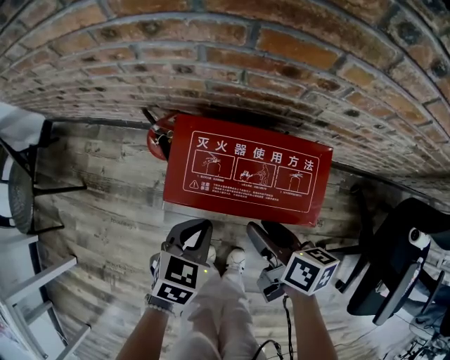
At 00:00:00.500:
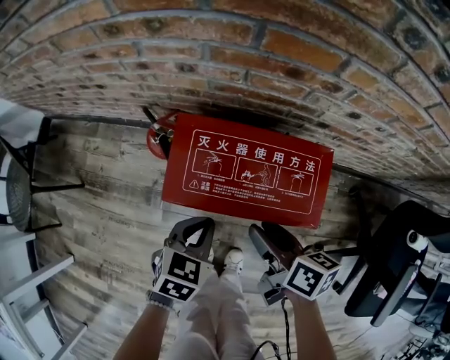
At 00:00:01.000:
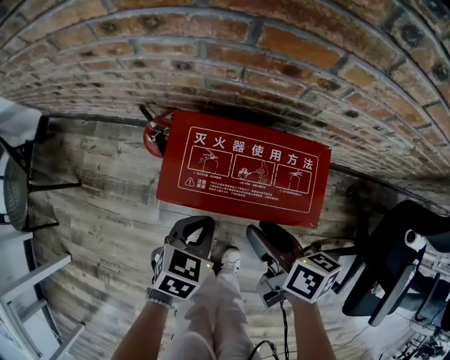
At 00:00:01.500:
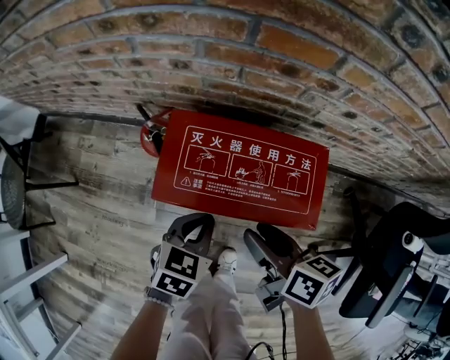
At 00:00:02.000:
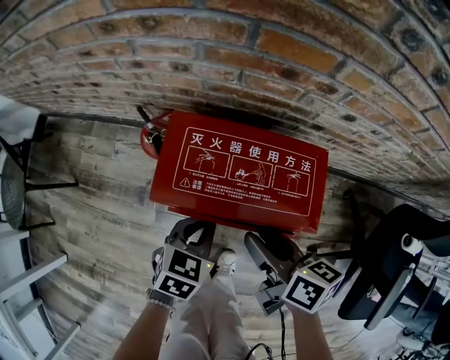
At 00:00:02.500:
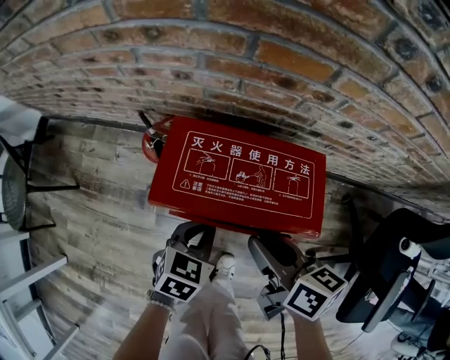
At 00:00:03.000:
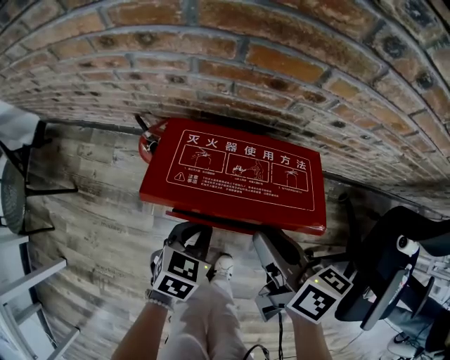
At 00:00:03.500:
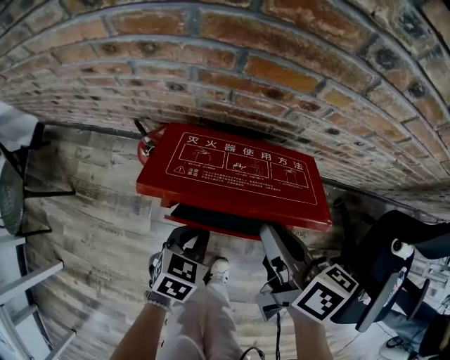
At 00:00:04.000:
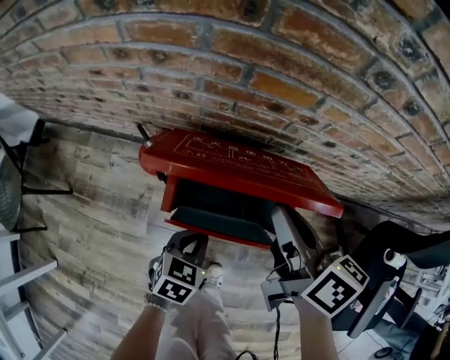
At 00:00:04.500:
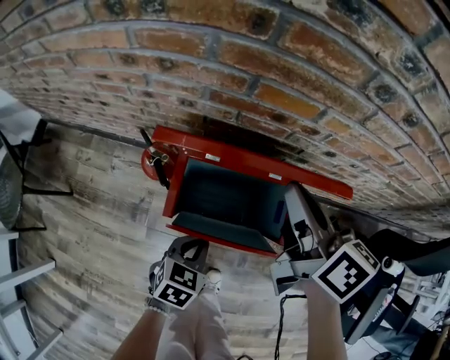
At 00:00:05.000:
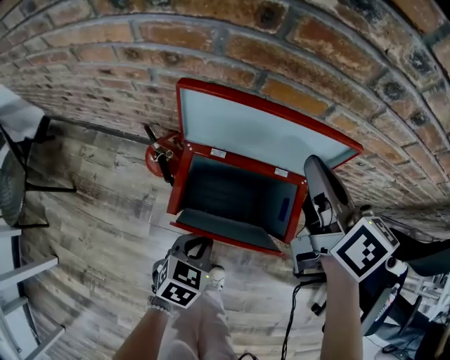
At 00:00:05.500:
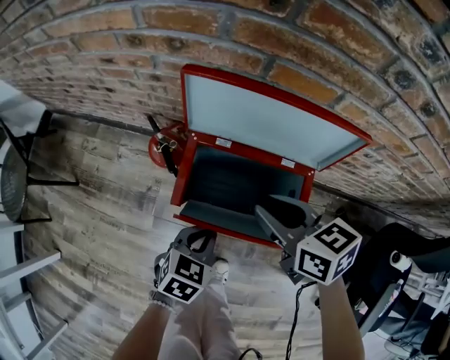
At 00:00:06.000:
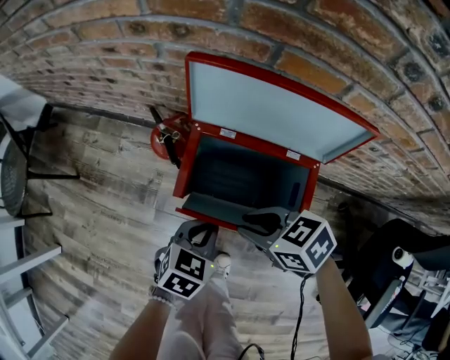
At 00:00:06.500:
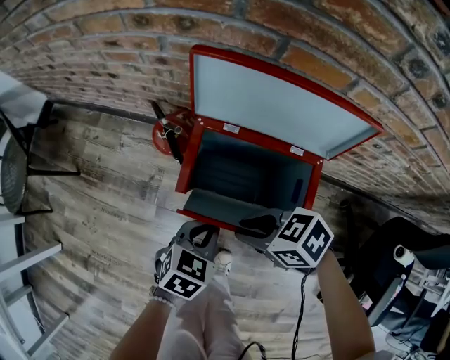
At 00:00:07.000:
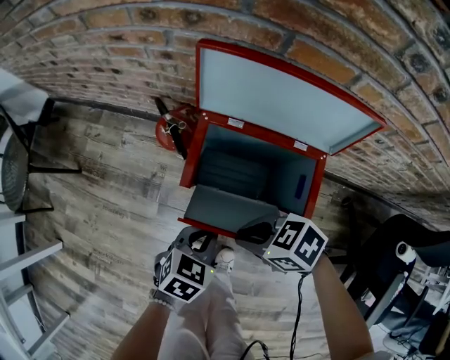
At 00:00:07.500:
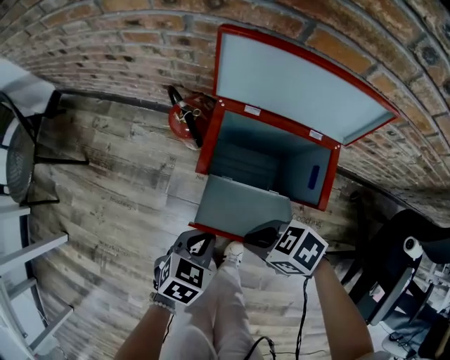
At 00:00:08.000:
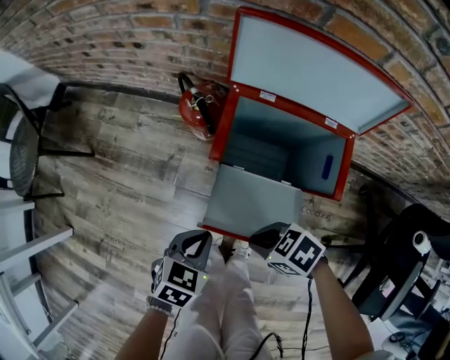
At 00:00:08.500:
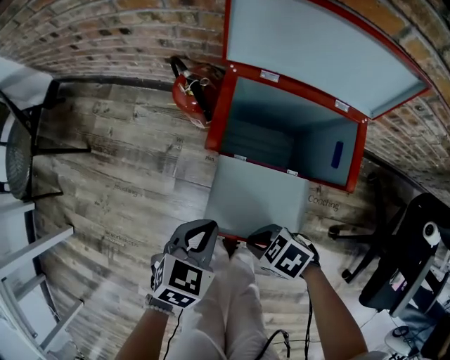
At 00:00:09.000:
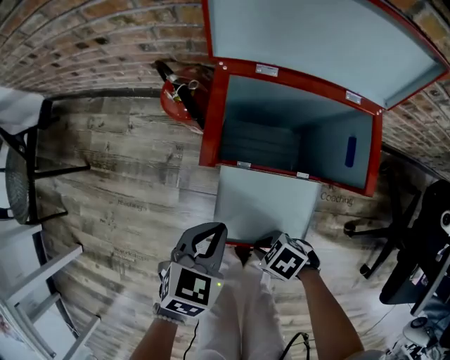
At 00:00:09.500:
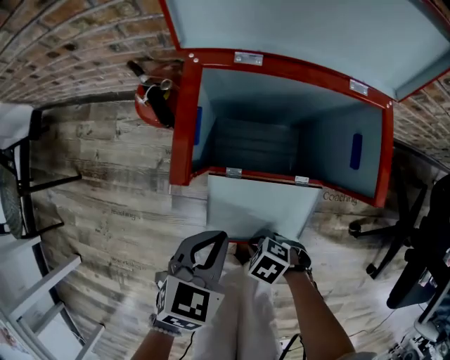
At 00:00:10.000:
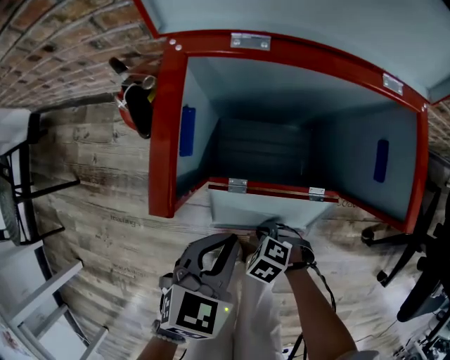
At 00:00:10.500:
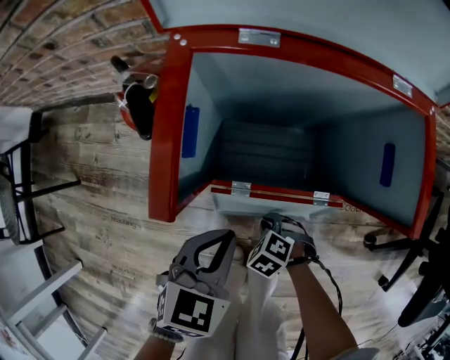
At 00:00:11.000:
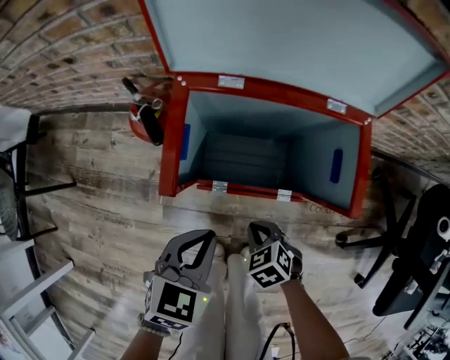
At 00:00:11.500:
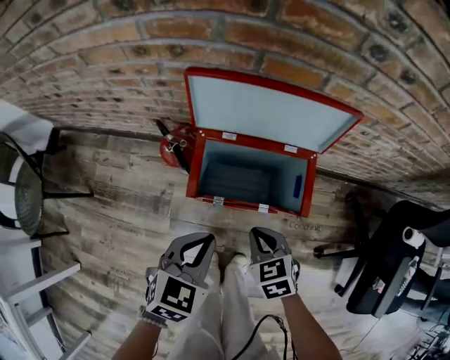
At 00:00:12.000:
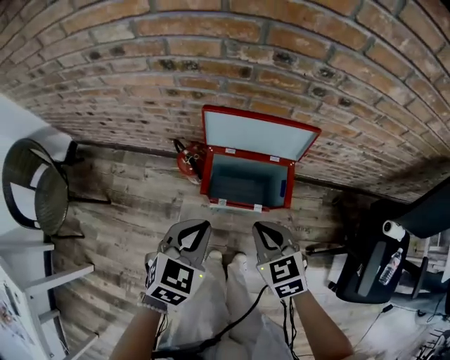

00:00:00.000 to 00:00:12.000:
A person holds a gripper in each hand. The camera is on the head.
00:00:00.000 to 00:00:02.000: The grippers stay close to where they were, moving slightly.
00:00:02.000 to 00:00:04.000: The right gripper travels upward and forward by approximately 15 cm, and closes its fingers.
00:00:04.000 to 00:00:06.000: The right gripper is displaced downward by about 15 cm, rotates roughly 60 degrees, and opens its fingers.
00:00:06.000 to 00:00:08.000: The right gripper changes place by approximately 20 cm. The left gripper ends up approximately 15 cm from where it was.
00:00:08.000 to 00:00:10.000: The right gripper moves downward, some 30 cm, and swivels roughly 30 degrees, while the left gripper shifts some 10 cm downward.
00:00:10.000 to 00:00:12.000: Both grippers move upward, approximately 50 cm. The right gripper points its fingers some 40 degrees further upward.

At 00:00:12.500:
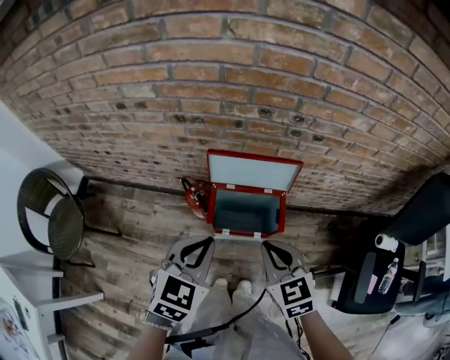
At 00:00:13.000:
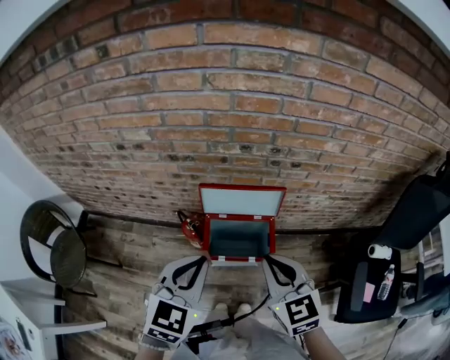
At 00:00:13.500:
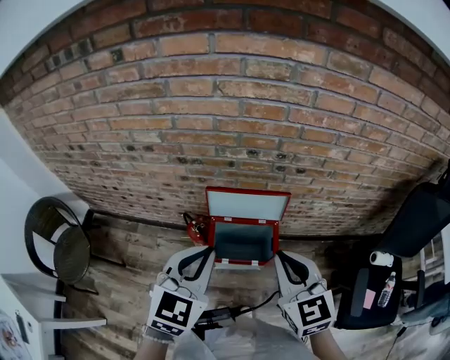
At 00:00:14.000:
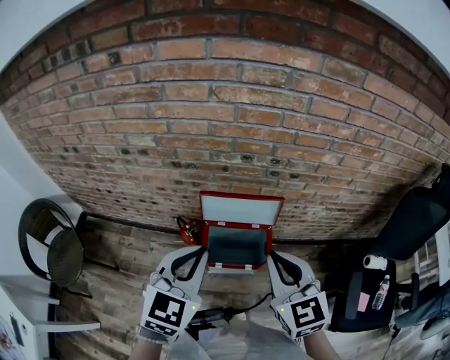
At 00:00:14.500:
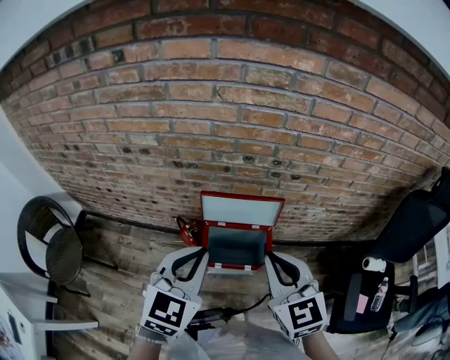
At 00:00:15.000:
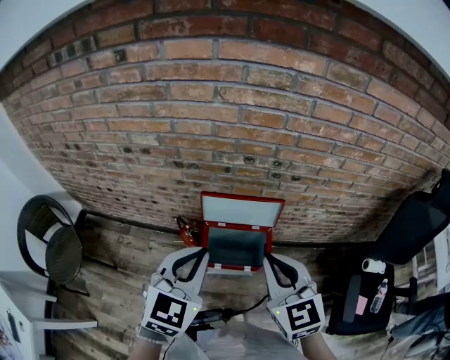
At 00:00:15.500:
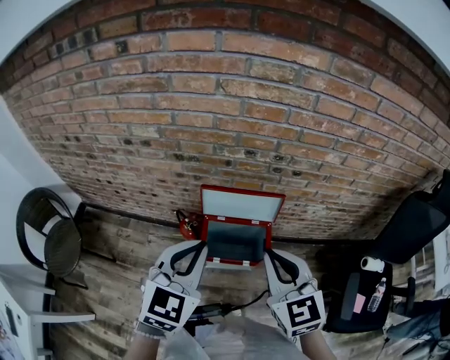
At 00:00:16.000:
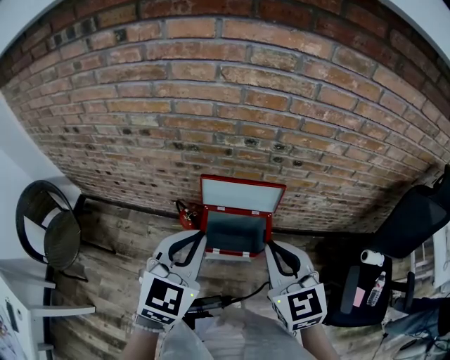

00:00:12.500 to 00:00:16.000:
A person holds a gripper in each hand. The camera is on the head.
00:00:12.500 to 00:00:14.500: The grippers both shift upward by roughly 15 cm.
00:00:14.500 to 00:00:16.000: Both grippers stay about where they are.

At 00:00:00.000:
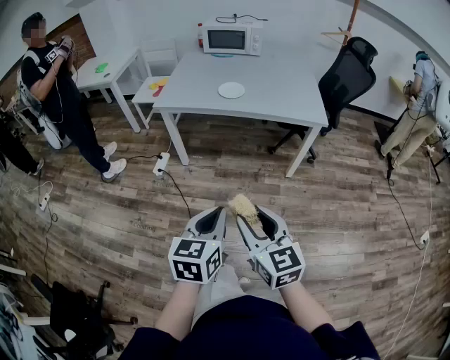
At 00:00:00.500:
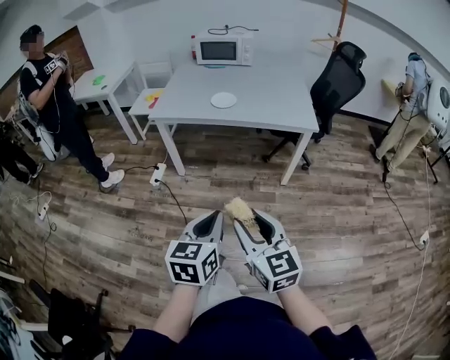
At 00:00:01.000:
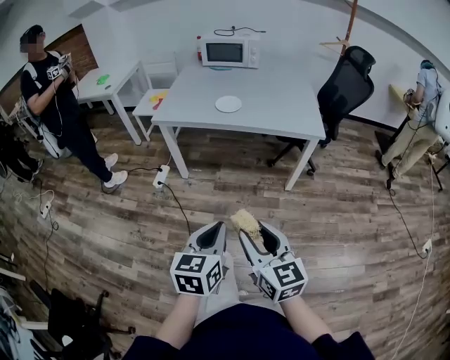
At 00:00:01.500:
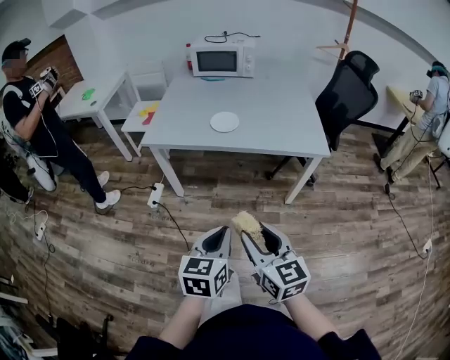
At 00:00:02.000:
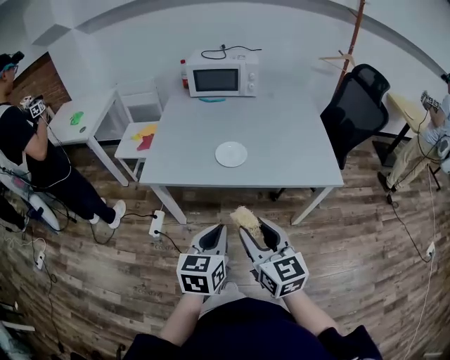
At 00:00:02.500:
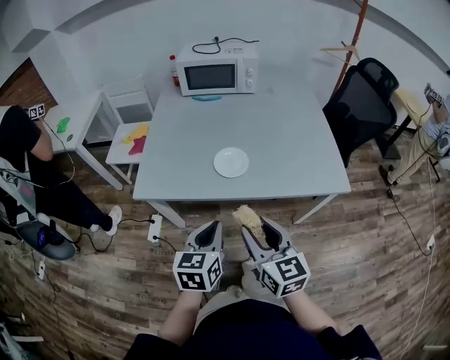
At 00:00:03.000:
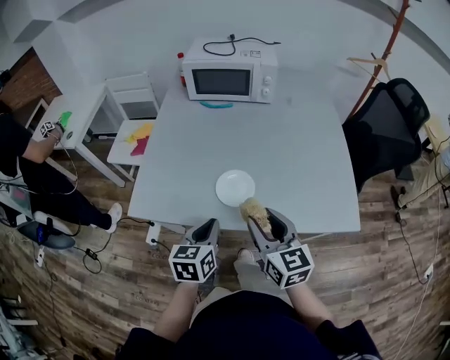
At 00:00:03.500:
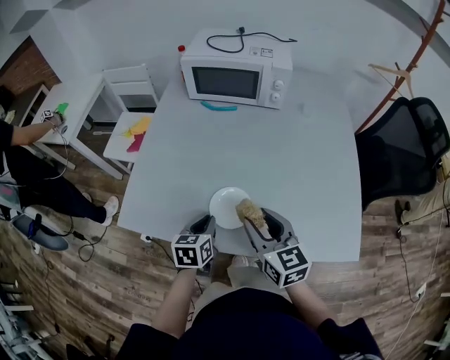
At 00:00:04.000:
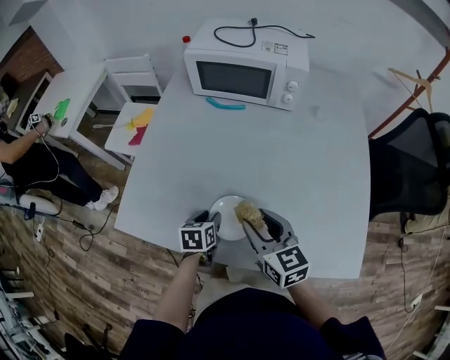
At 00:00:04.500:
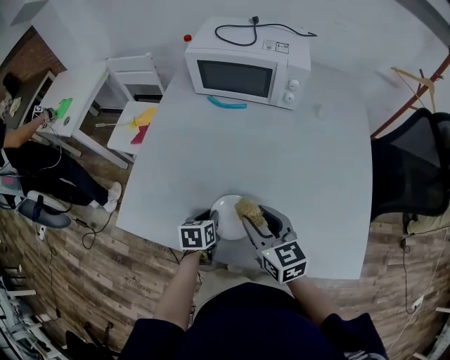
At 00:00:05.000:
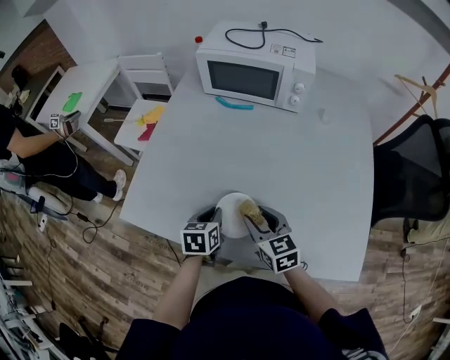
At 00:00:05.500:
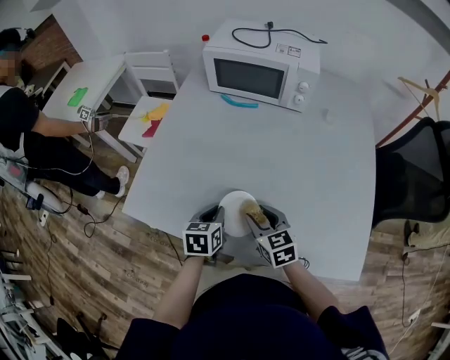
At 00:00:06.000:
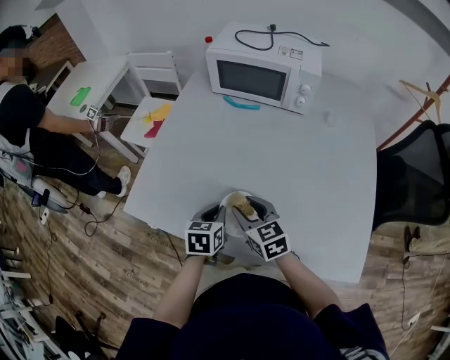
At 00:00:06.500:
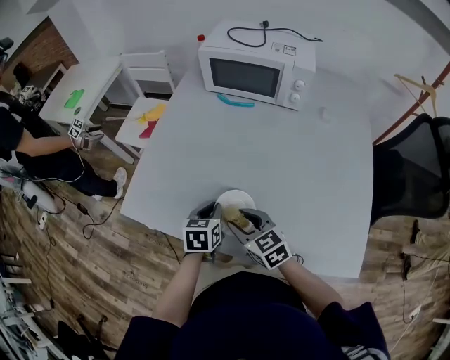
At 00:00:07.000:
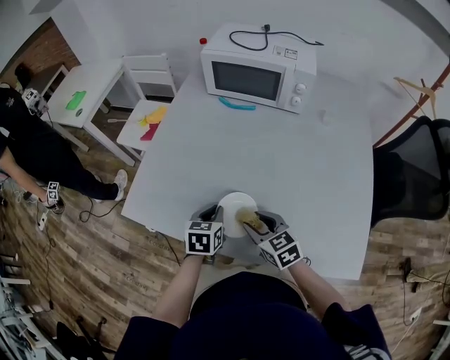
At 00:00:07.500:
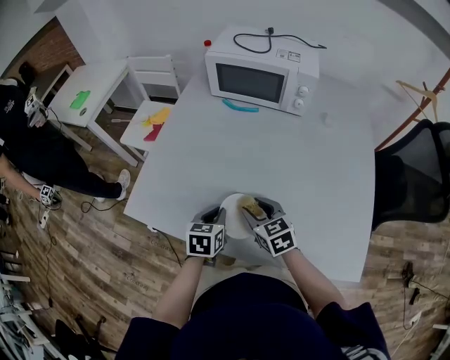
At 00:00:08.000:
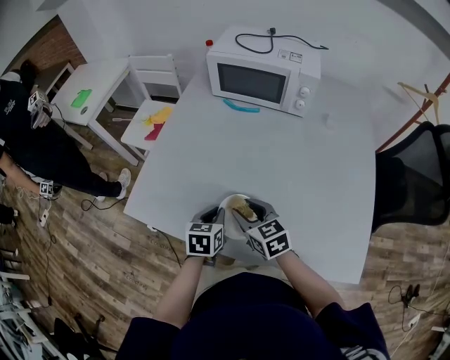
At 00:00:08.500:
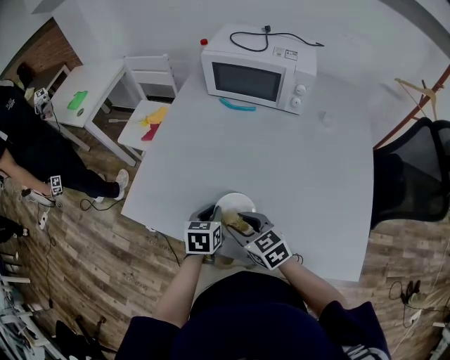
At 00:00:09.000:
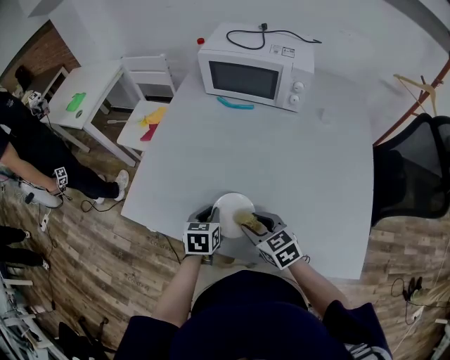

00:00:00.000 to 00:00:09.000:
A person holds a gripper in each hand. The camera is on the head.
00:00:00.000 to 00:00:02.000: Both grippers travel together forward, some 35 cm.
00:00:02.000 to 00:00:04.500: The right gripper is displaced forward by some 40 cm, and turns by some 20 degrees; the left gripper travels forward and downward by about 50 cm, rotates approximately 30 degrees, and opens, then closes once more.
00:00:04.500 to 00:00:07.000: The right gripper is displaced downward by some 10 cm. The left gripper goes some 5 cm upward.

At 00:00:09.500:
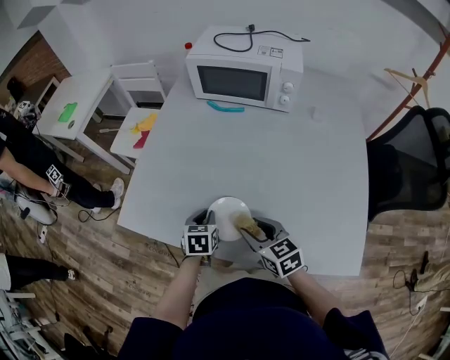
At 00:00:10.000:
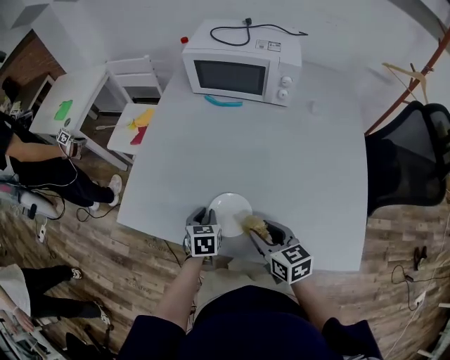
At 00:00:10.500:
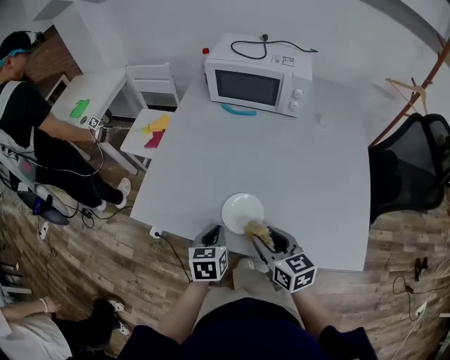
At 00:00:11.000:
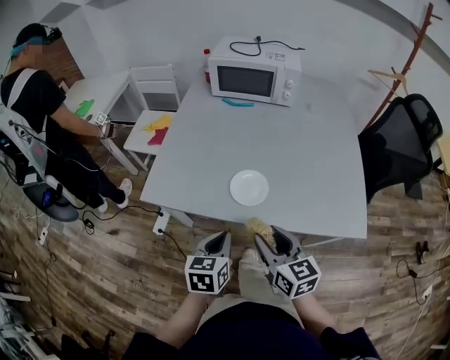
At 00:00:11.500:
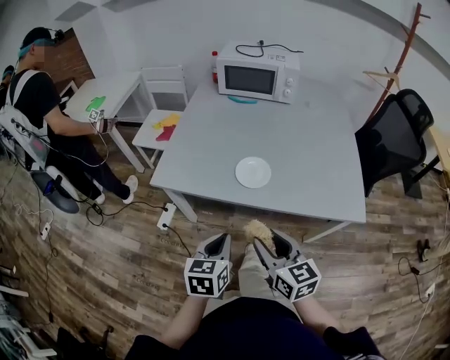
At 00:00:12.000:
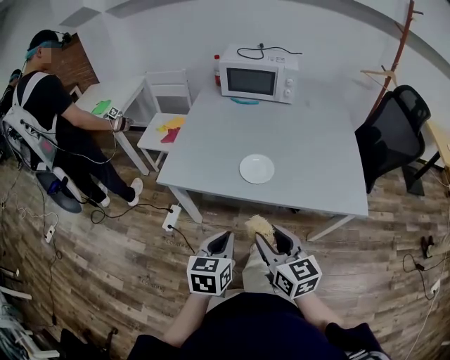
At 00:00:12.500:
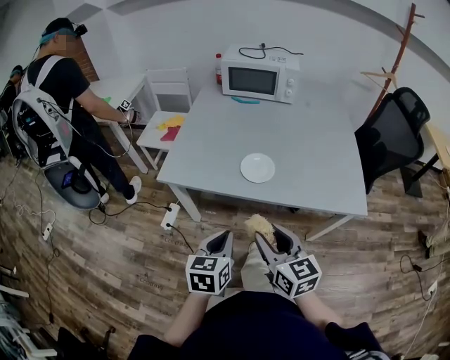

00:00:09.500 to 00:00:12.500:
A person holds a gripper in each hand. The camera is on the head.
00:00:09.500 to 00:00:11.000: The two grippers go about 20 cm backward and upward. The right gripper rotates approximately 20 degrees.
00:00:11.000 to 00:00:12.500: Both grippers move backward, approximately 10 cm.
